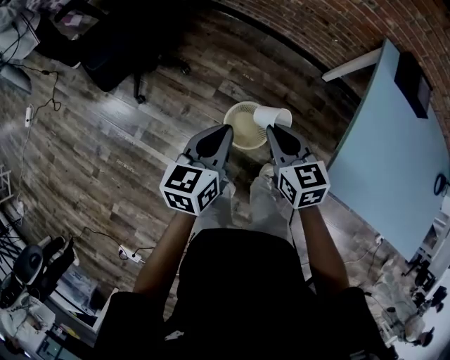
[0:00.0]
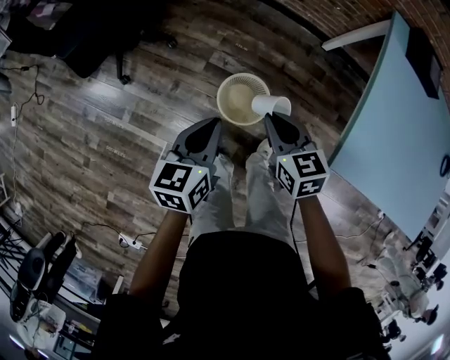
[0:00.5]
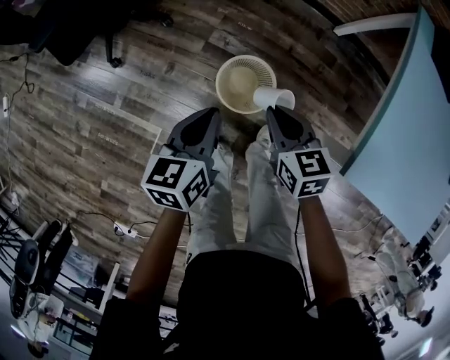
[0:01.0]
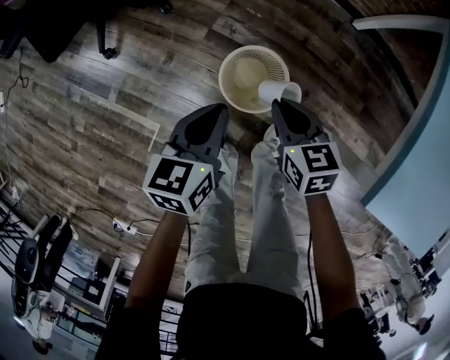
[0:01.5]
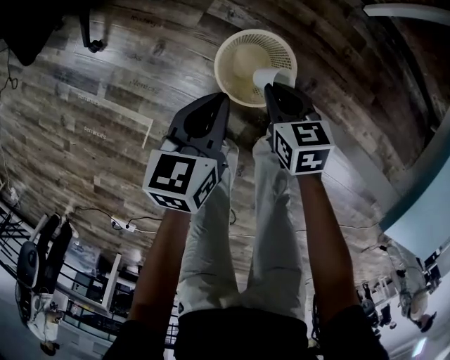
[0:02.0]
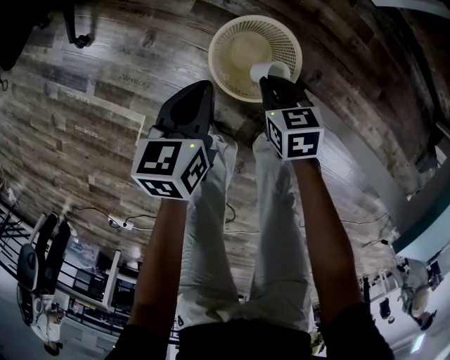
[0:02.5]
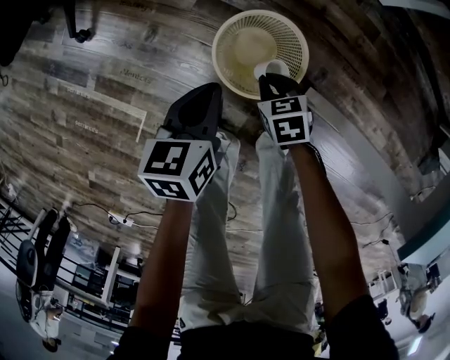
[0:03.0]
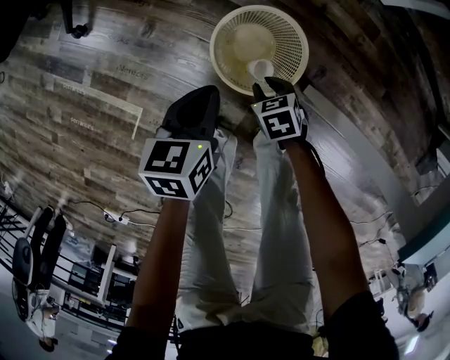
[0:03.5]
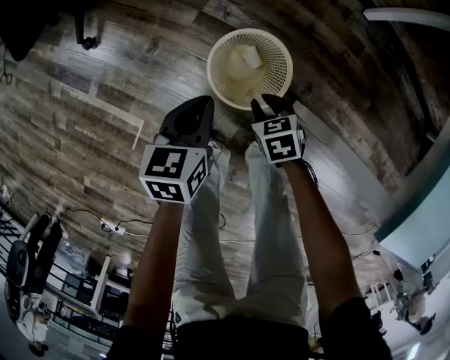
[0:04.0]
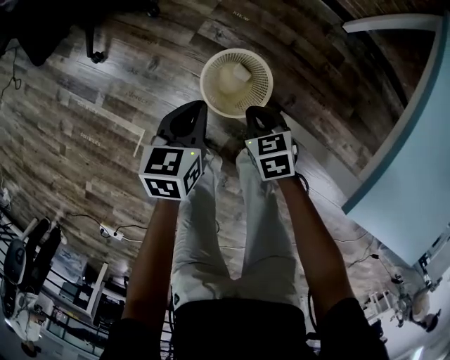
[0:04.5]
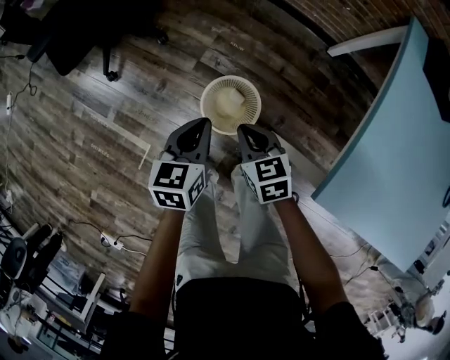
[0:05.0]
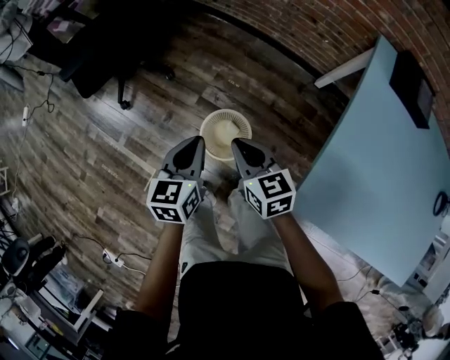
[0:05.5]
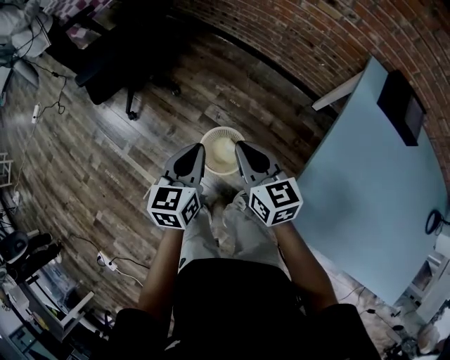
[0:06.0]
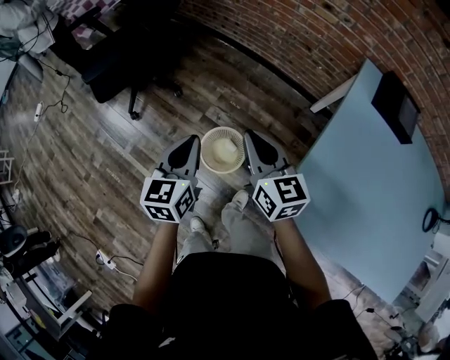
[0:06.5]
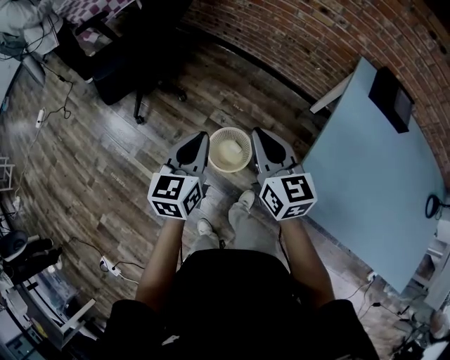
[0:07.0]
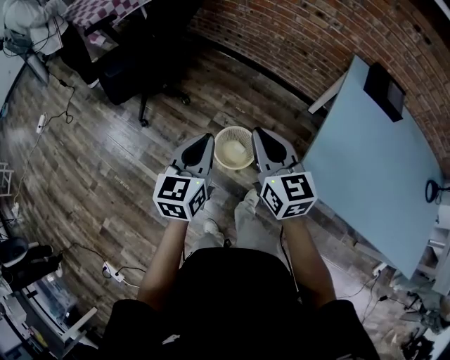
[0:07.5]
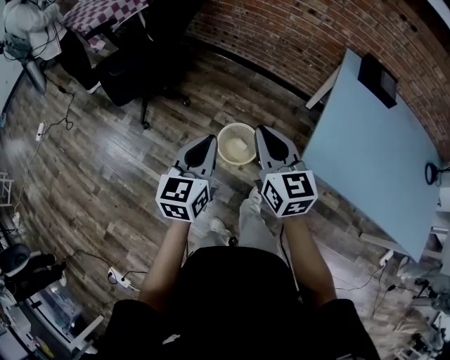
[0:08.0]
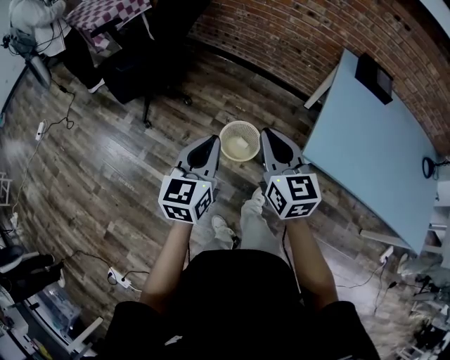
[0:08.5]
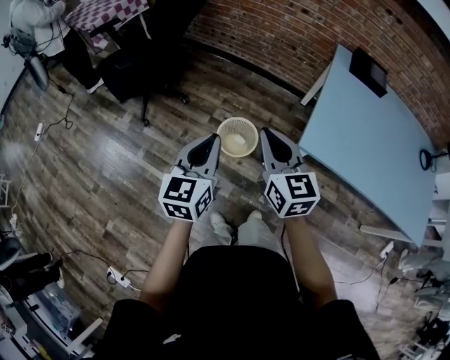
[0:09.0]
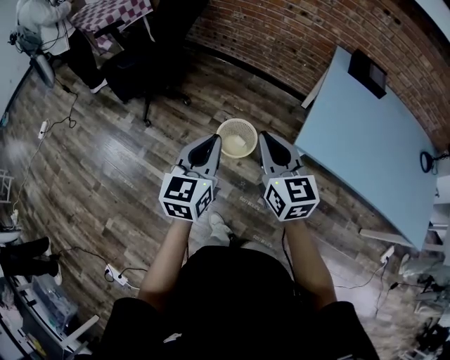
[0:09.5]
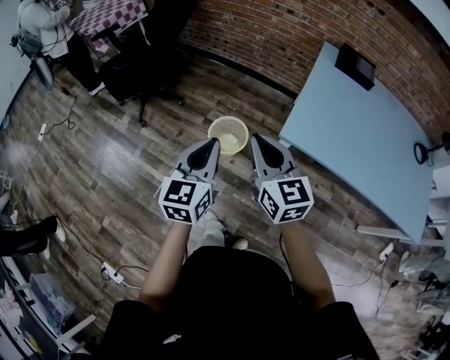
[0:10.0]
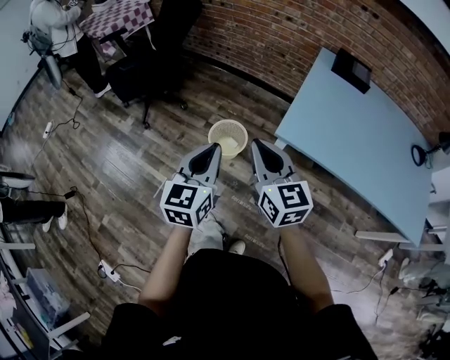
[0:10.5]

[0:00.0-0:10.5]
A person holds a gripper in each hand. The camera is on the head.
0:00.0 to 0:02.0: The grippers both shift downward by roughly 40 cm. The right gripper turns by approximately 20 degrees.
0:02.0 to 0:04.0: The left gripper heads downward, covering some 5 cm. Meanwhile the right gripper goes some 10 cm downward and backward.
0:04.0 to 0:06.5: The grippers both shift upward by about 50 cm. The left gripper turns by about 30 degrees. Meanwhile the right gripper tilts its fingers approximately 50 degrees upward, and closes up.
0:06.5 to 0:08.5: Both grippers travel together backward, to the left and upward, some 25 cm.
0:08.5 to 0:10.5: The grippers both shift backward and to the right by some 20 cm.

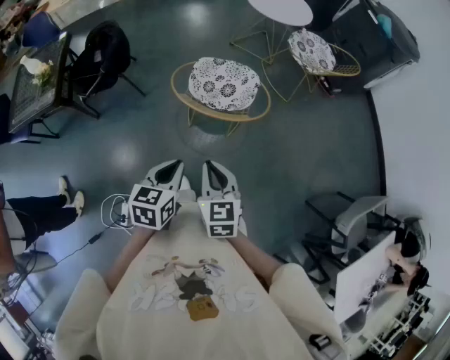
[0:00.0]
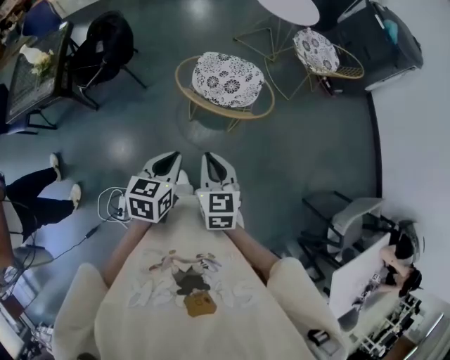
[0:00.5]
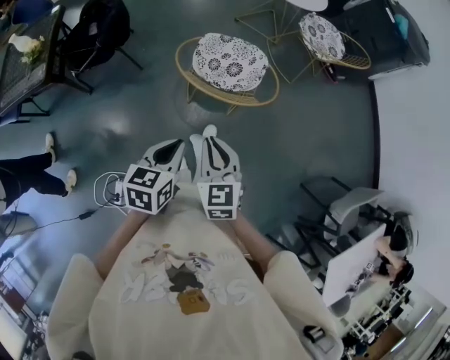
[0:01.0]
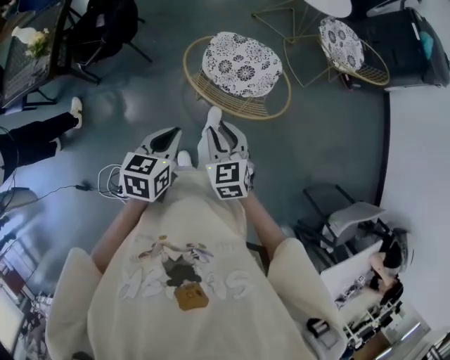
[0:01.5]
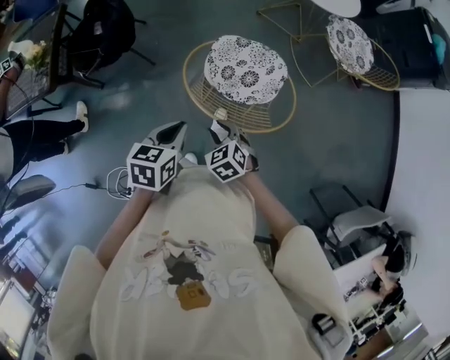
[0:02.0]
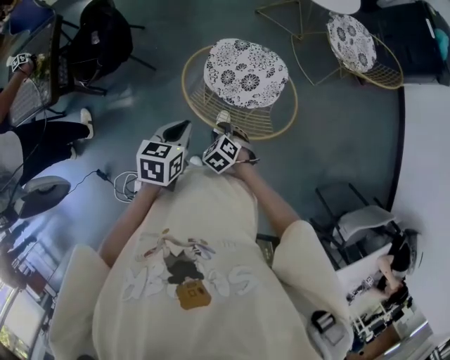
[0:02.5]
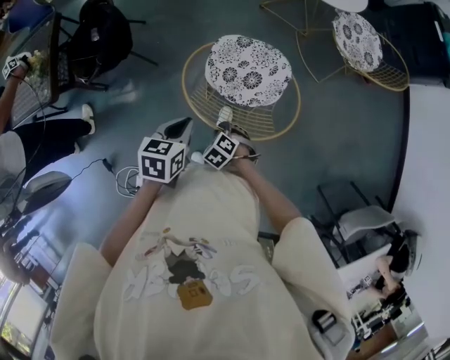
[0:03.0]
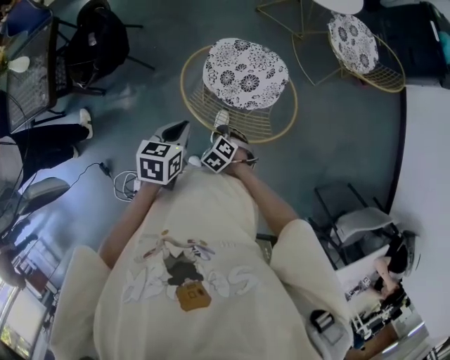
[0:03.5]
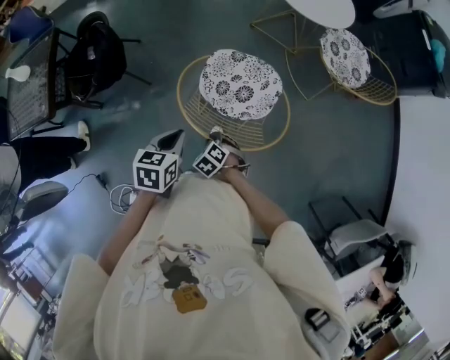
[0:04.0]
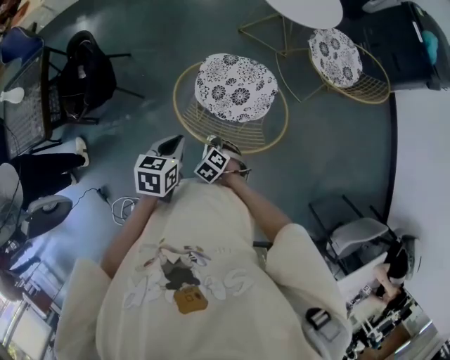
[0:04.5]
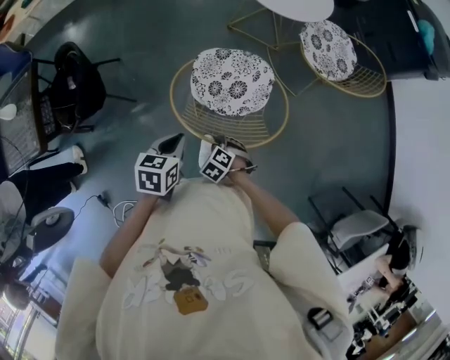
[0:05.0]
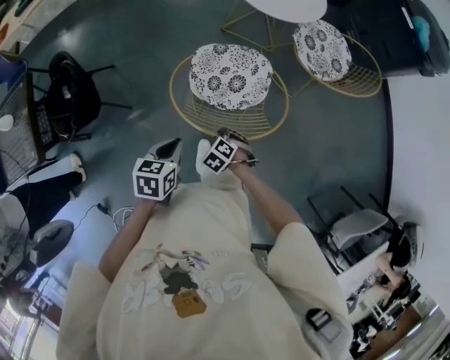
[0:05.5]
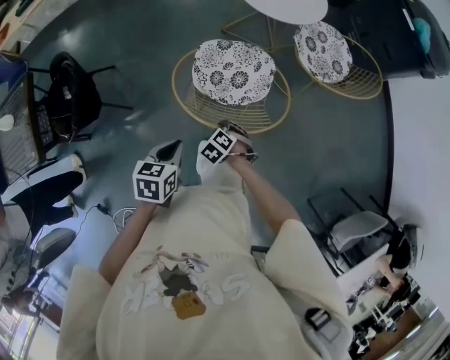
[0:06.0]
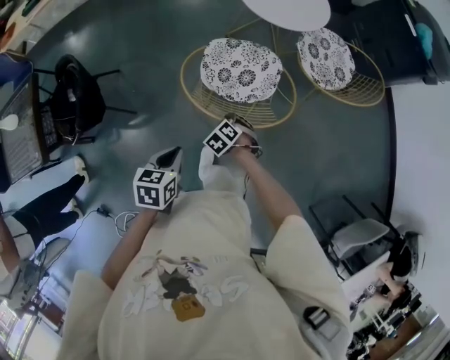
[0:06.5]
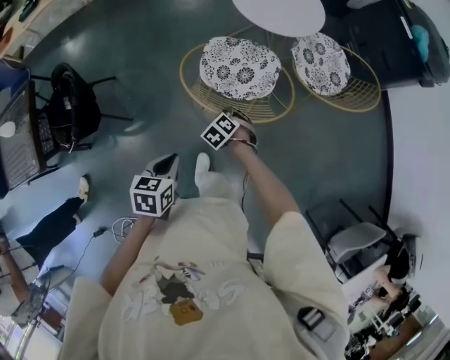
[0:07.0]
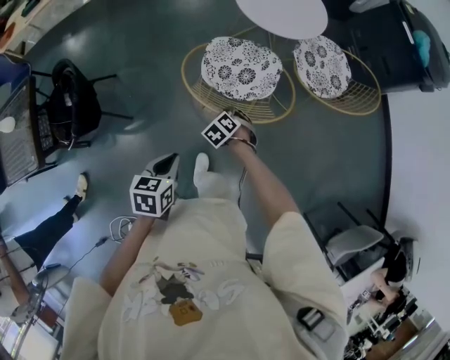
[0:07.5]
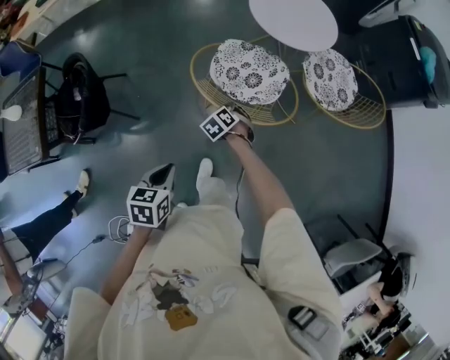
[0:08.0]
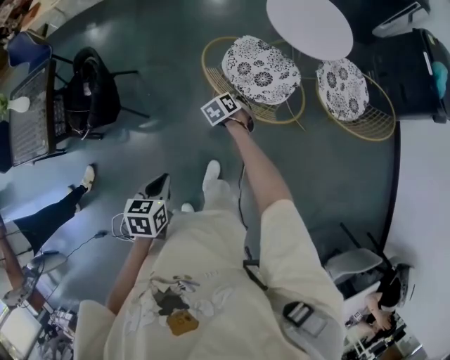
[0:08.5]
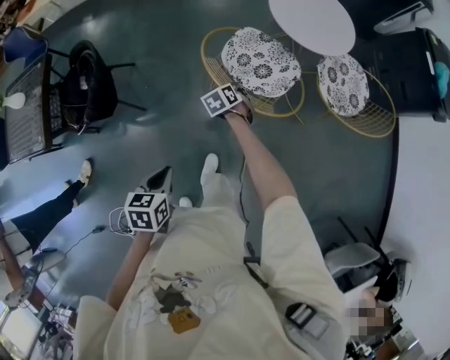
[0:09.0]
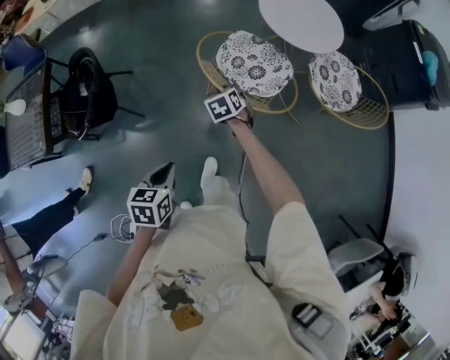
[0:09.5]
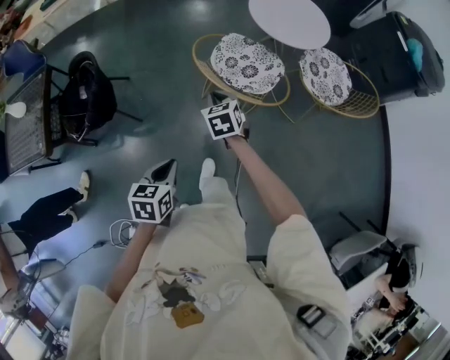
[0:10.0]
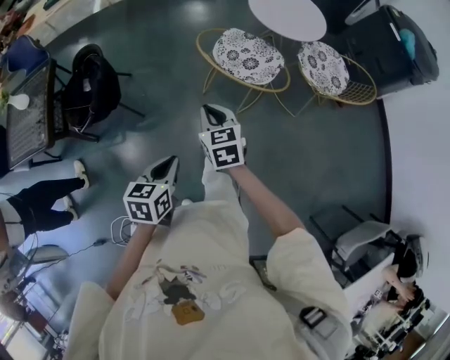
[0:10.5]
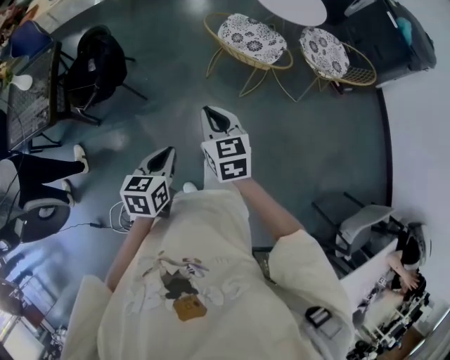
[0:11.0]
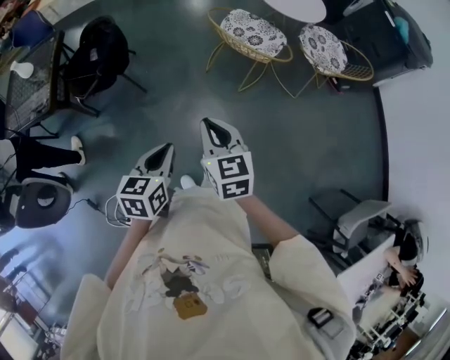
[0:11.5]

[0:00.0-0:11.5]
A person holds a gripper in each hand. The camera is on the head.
0:00.0 to 0:02.0: The left gripper travels forward by approximately 25 cm. Meanwhile the right gripper heads forward and downward, covering approximately 30 cm, rotates approximately 40 degrees, and opens its fingers.
0:02.0 to 0:04.0: The left gripper changes place by roughly 10 cm, while the right gripper shifts about 10 cm downward.
0:04.0 to 0:06.0: The right gripper ends up approximately 20 cm from where it was, while the left gripper changes place by about 10 cm.
0:06.0 to 0:07.5: The right gripper moves approximately 10 cm.
0:07.5 to 0:09.5: The left gripper shifts approximately 10 cm to the left and backward. The right gripper moves to the left, upward and forward, some 15 cm, and rotates some 20 degrees.
0:09.5 to 0:11.5: The left gripper moves backward, some 25 cm, while the right gripper travels backward and upward by approximately 50 cm, and tips its fingers upward by approximately 30 degrees.

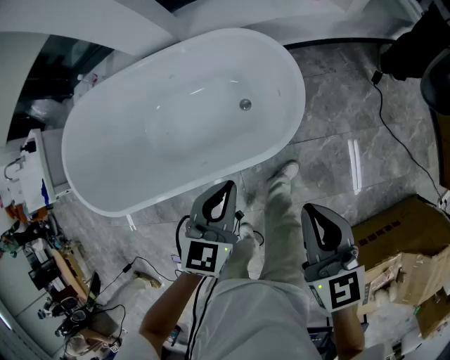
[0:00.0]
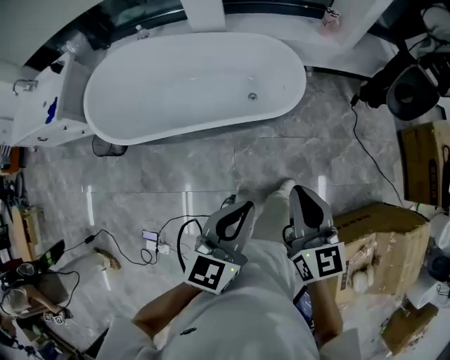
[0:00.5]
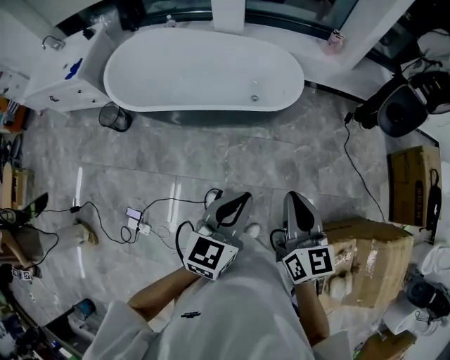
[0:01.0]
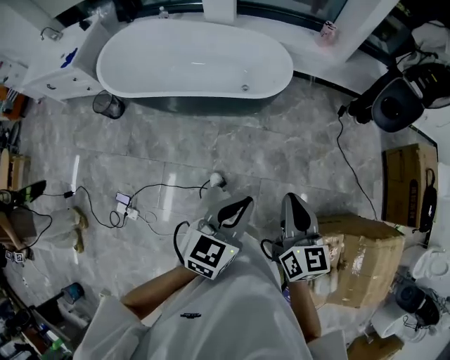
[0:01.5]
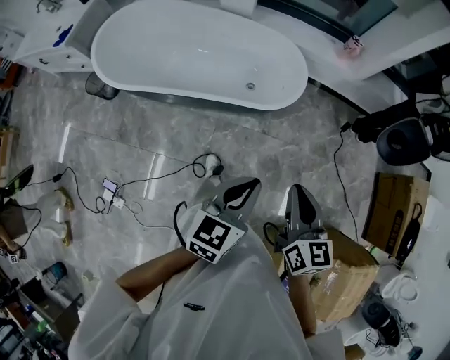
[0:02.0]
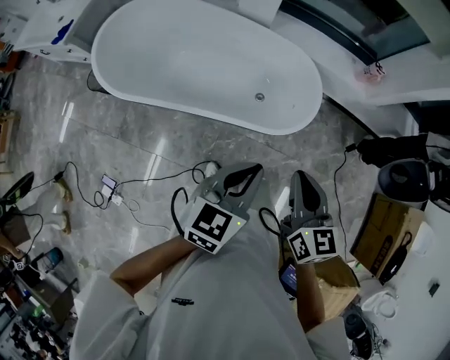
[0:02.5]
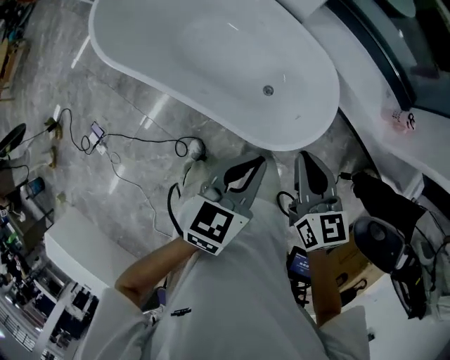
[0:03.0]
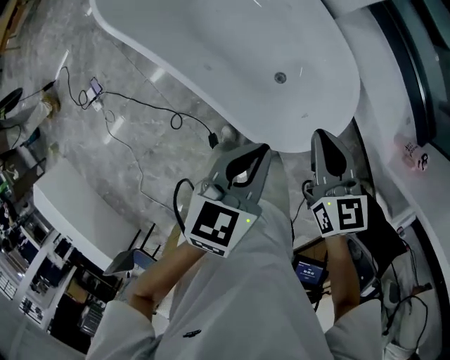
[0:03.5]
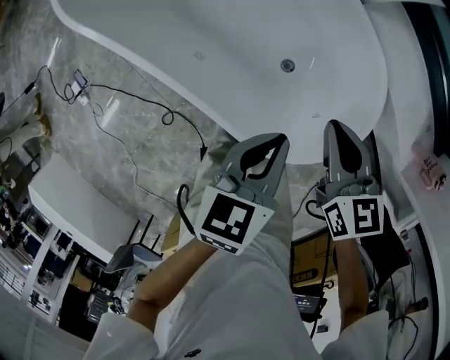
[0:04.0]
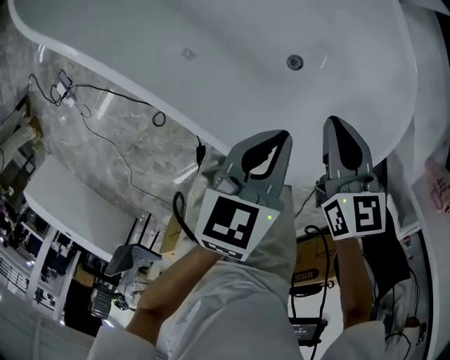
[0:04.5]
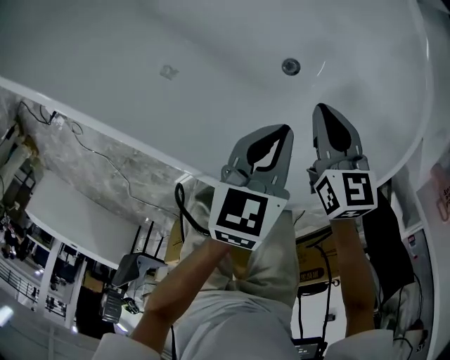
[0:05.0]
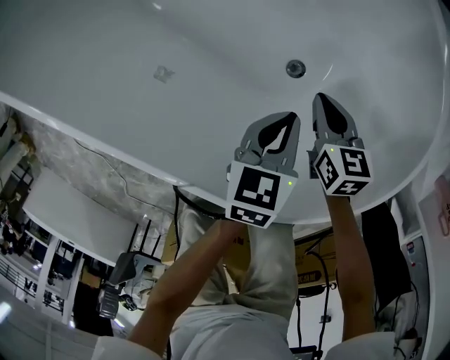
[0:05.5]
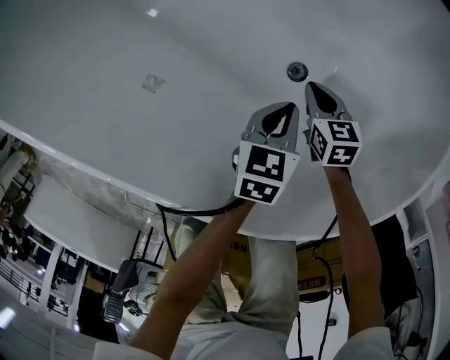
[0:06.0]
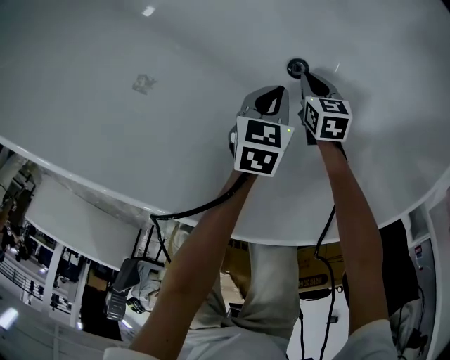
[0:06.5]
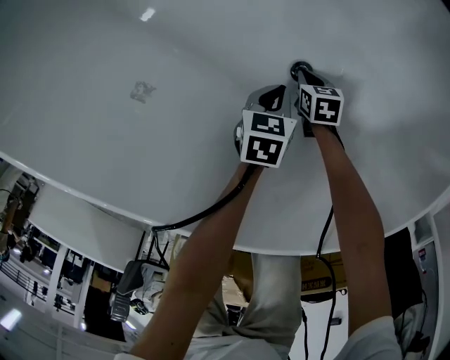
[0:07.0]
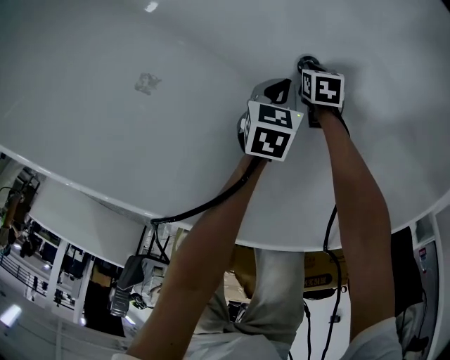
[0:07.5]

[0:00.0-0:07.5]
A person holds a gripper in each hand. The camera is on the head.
0:00.0 to 0:02.0: Both grippers travel together backward and upward, roughly 40 cm.
0:02.0 to 0:04.0: The two grippers travel together, some 60 cm. The left gripper turns by approximately 50 degrees. The right gripper rotates approximately 50 degrees.
0:04.0 to 0:05.5: Both grippers travel together downward, roughly 35 cm.
0:05.5 to 0:07.5: Both grippers move downward, approximately 25 cm. The right gripper changes its angle by some 30 degrees.
